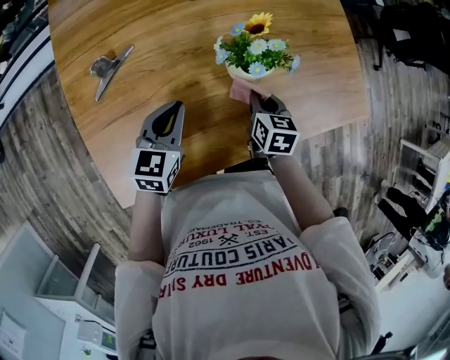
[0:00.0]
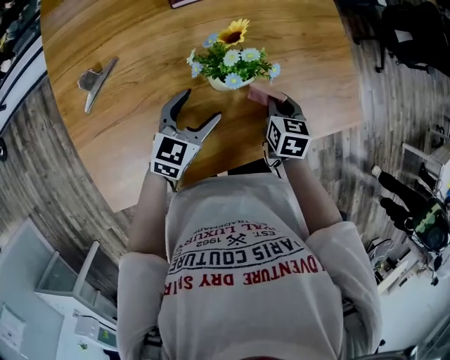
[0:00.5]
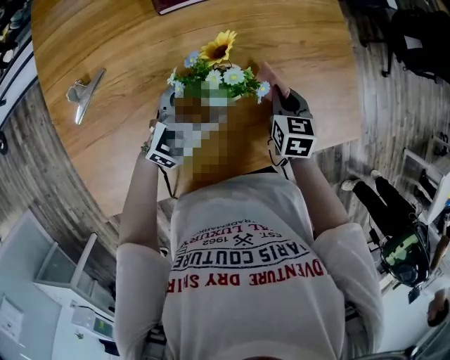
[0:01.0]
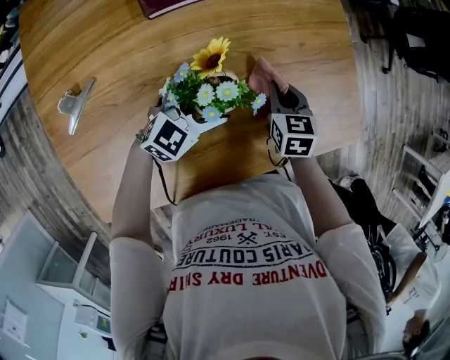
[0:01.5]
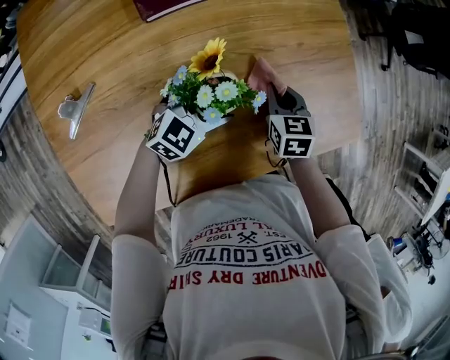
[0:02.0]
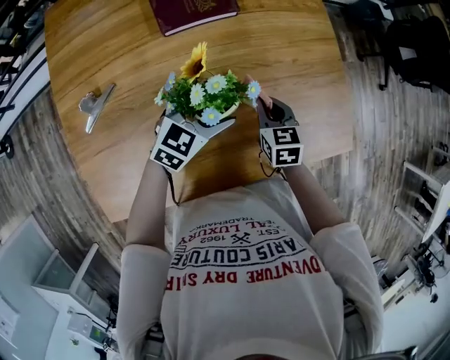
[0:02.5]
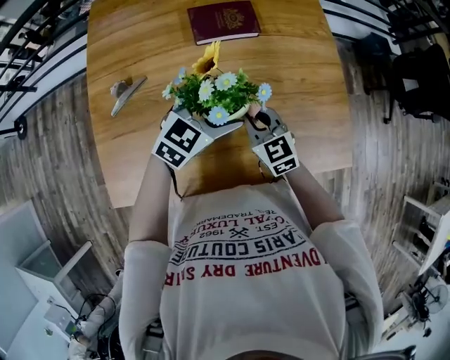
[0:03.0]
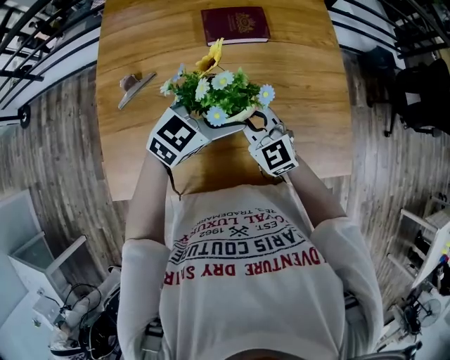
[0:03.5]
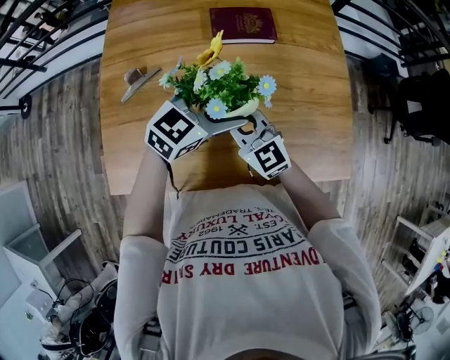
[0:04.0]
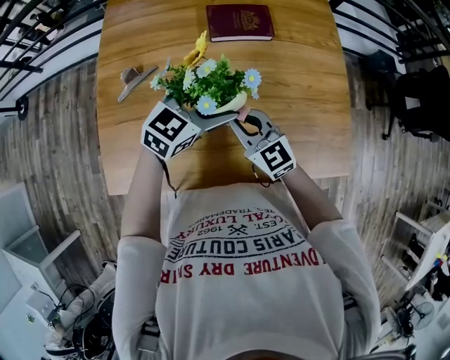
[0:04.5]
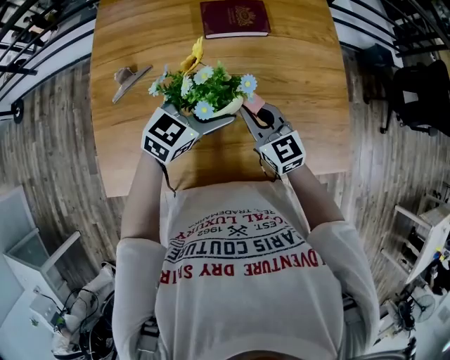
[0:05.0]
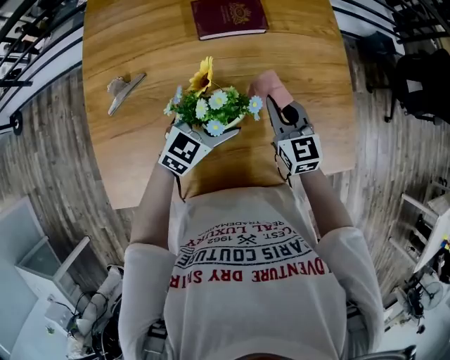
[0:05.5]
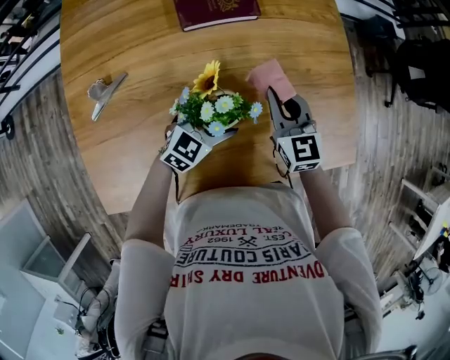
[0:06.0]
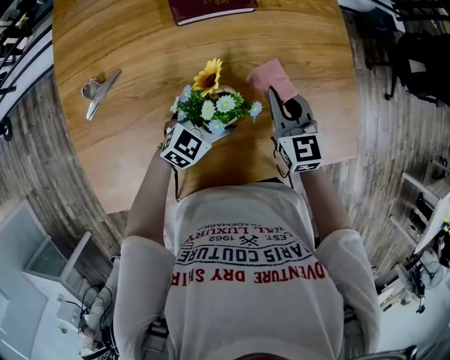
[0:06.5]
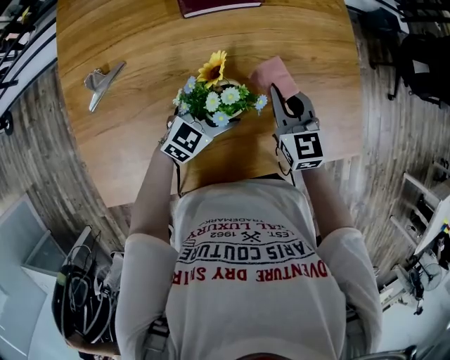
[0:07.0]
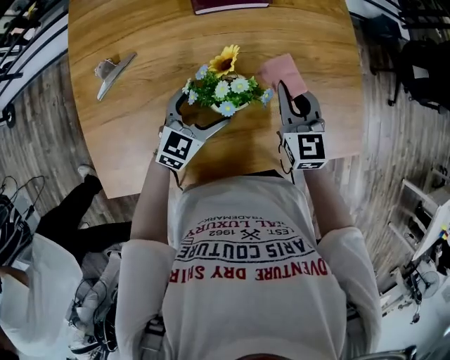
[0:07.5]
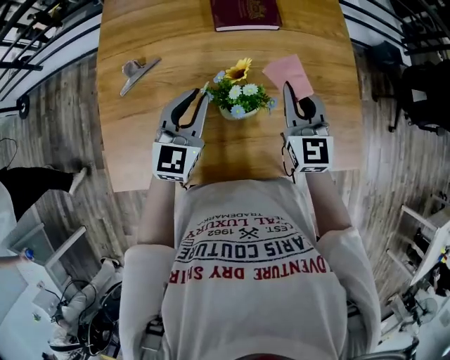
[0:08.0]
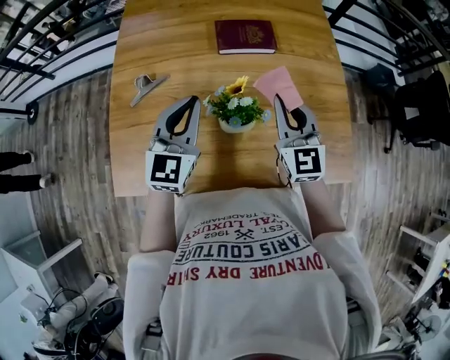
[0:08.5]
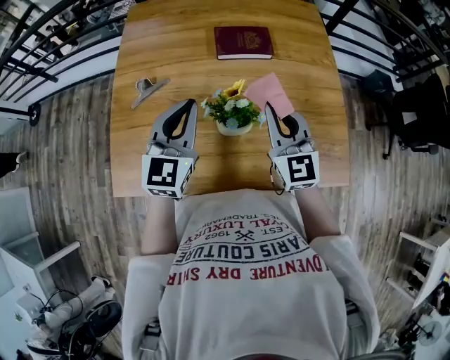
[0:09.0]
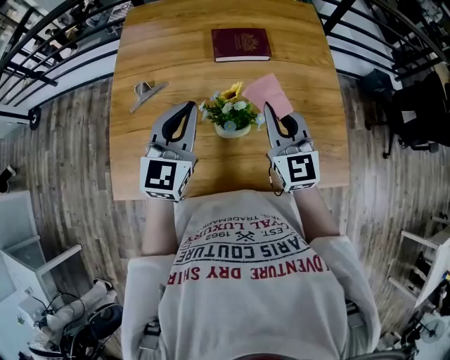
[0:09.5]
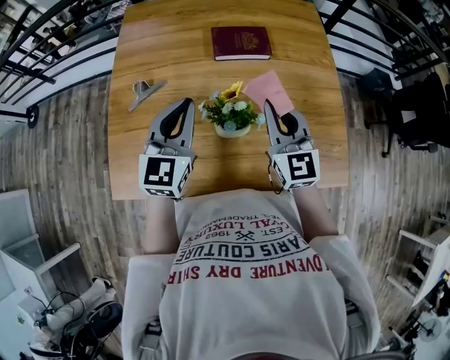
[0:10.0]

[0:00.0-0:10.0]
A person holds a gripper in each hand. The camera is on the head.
0:00.0 to 0:02.0: The grippers both shift forward and to the right by roughly 20 cm. The left gripper swivels about 40 degrees, and opens.
0:02.0 to 0:04.0: The left gripper travels upward by roughly 20 cm, and swivels roughly 20 degrees, while the right gripper ends up about 25 cm from where it was, and angles its fingers upward, by some 30 degrees.
0:04.0 to 0:06.0: The right gripper moves to the right, forward and downward, some 20 cm, and swivels approximately 30 degrees, while the left gripper travels downward by approximately 20 cm.
0:06.0 to 0:08.0: The right gripper travels upward by some 10 cm. Meanwhile the left gripper heads upward and to the left, covering approximately 20 cm, turns by about 40 degrees, and closes up.
0:08.0 to 0:10.0: The right gripper moves upward, about 5 cm. The left gripper is displaced upward by roughly 10 cm.

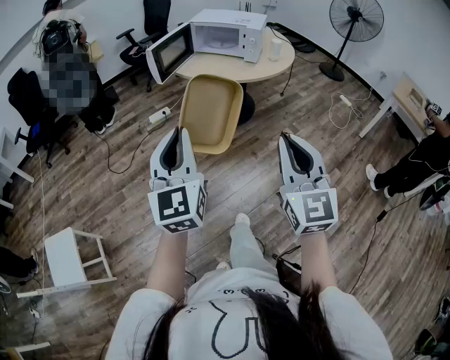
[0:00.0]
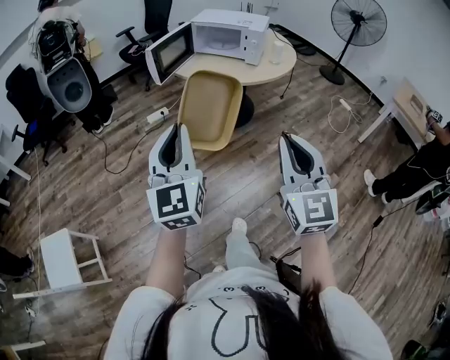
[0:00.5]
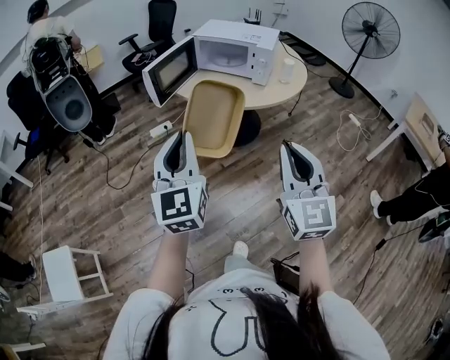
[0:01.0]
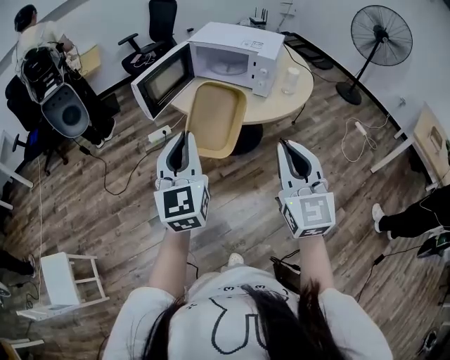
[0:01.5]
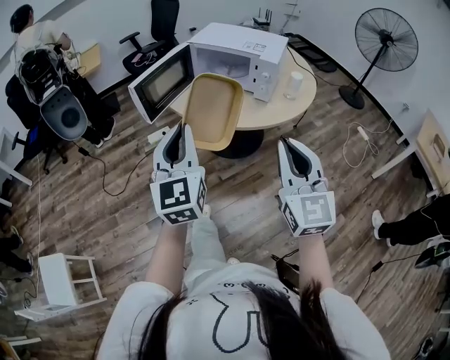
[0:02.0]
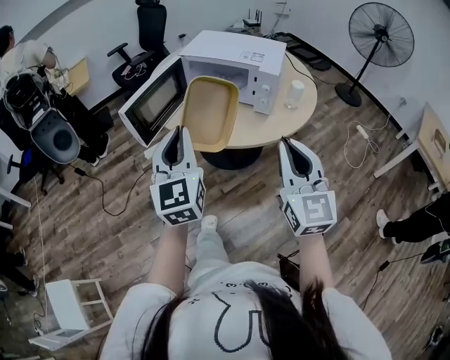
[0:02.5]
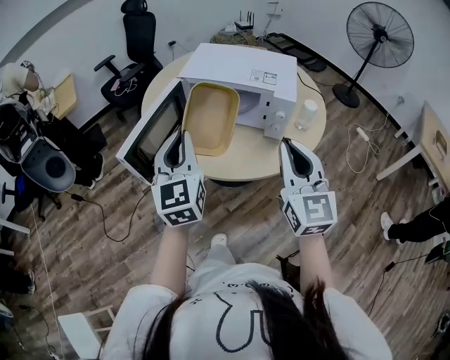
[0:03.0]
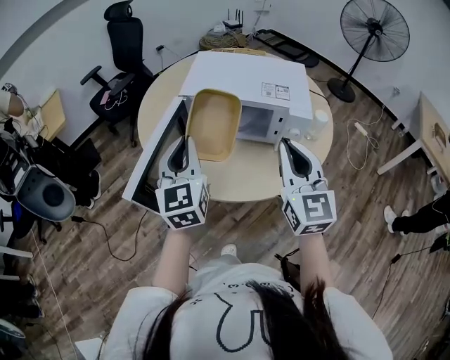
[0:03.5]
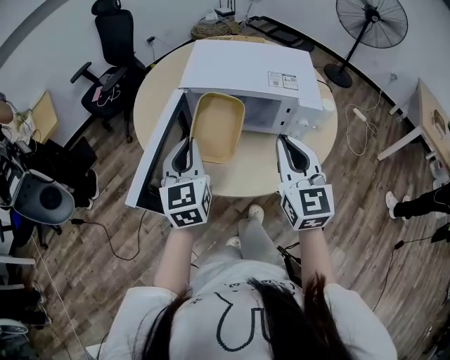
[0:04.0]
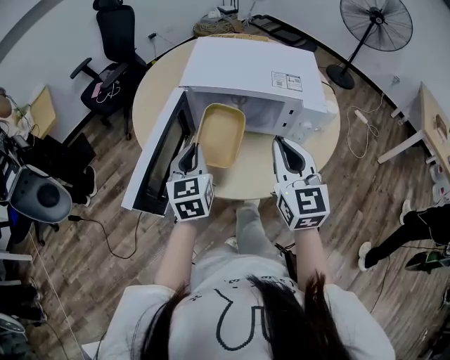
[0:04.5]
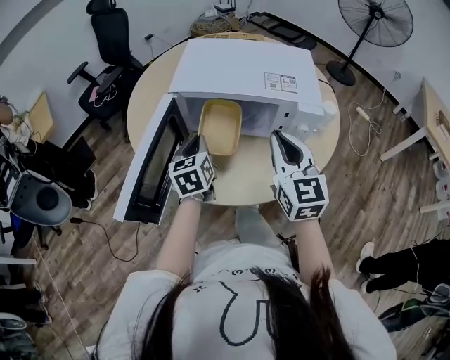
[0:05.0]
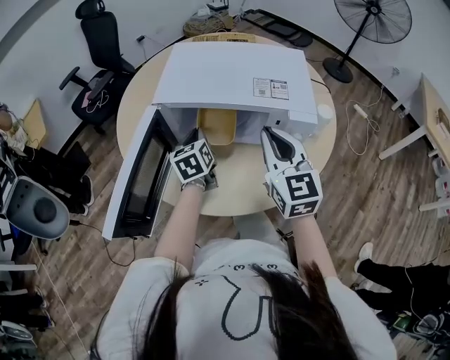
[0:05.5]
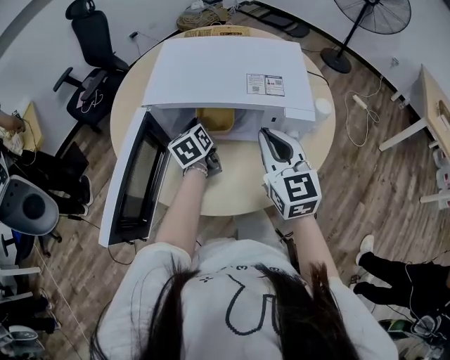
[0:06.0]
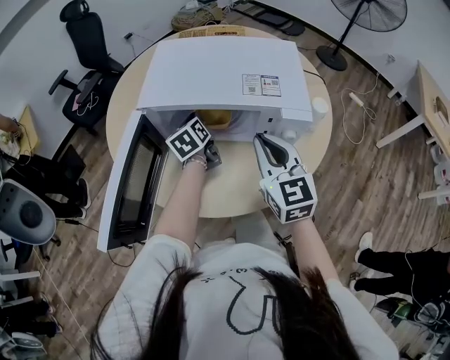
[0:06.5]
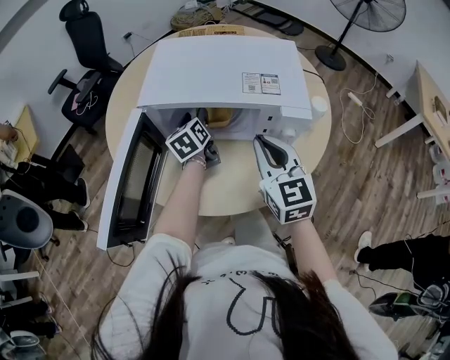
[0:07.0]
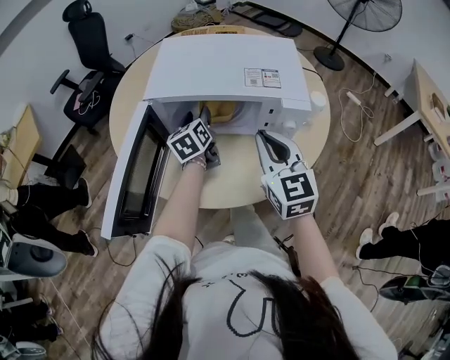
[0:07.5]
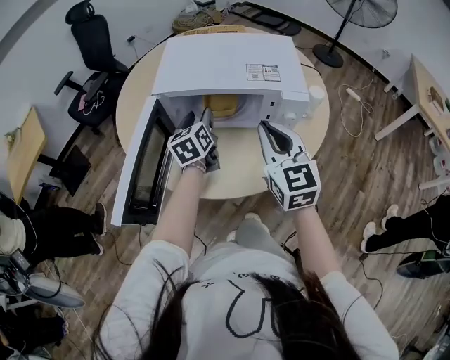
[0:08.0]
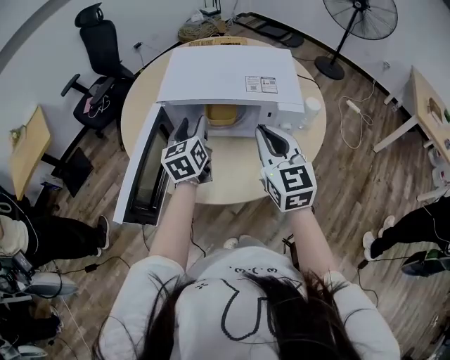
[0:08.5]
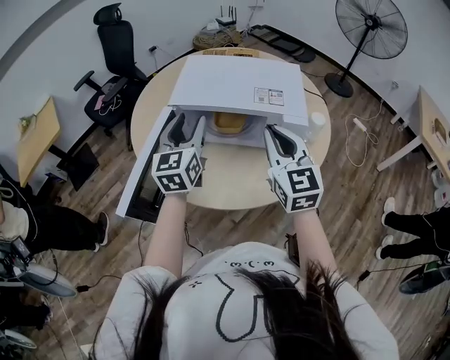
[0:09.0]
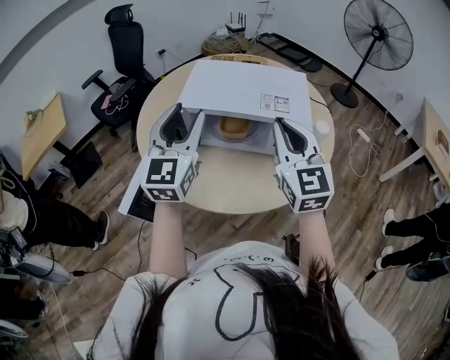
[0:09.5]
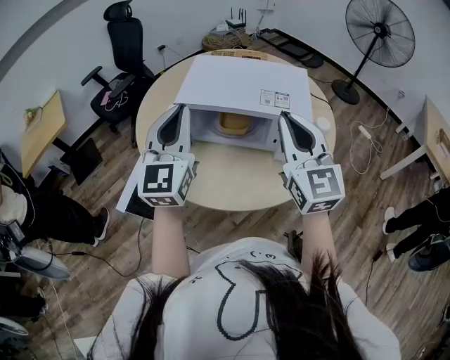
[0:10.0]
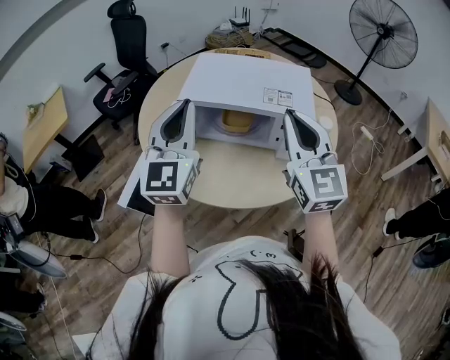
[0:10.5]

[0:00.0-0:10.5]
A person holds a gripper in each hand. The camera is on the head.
0:00.0 to 0:02.0: Both grippers travel together forward, about 35 cm.
0:02.0 to 0:04.0: The grippers both shift forward by roughly 40 cm. The left gripper rotates roughly 20 degrees.
0:04.0 to 0:06.5: The left gripper moves forward, downward and to the right, roughly 30 cm, and swivels approximately 30 degrees; the right gripper is displaced forward and downward by approximately 15 cm.
0:06.5 to 0:08.5: The right gripper shifts about 5 cm upward, while the left gripper heads upward and backward, covering approximately 15 cm, and opens up.
0:08.5 to 0:10.5: The left gripper shifts roughly 20 cm upward and backward, changes its angle by some 40 degrees, and closes. Meanwhile the right gripper shifts roughly 10 cm upward.

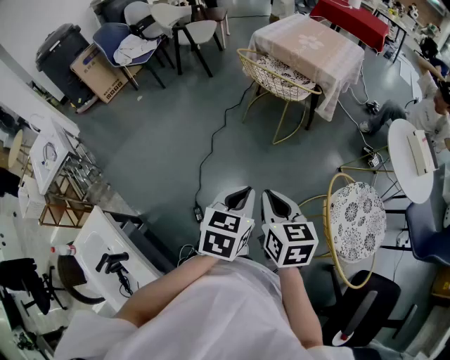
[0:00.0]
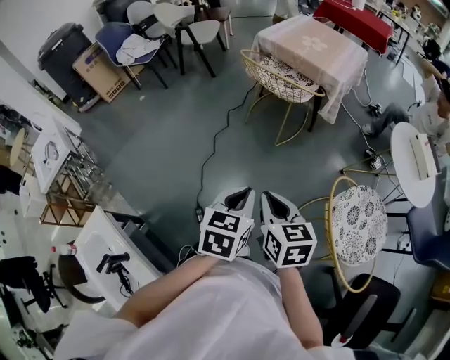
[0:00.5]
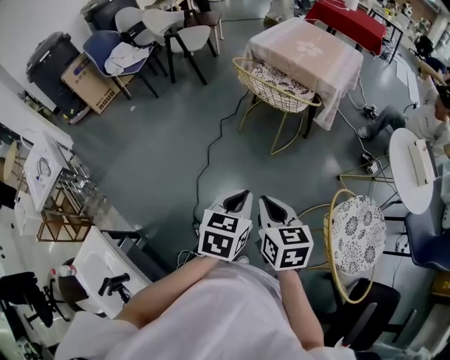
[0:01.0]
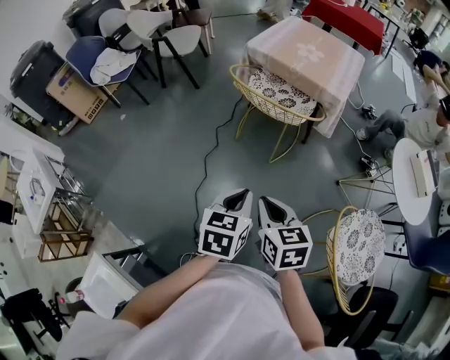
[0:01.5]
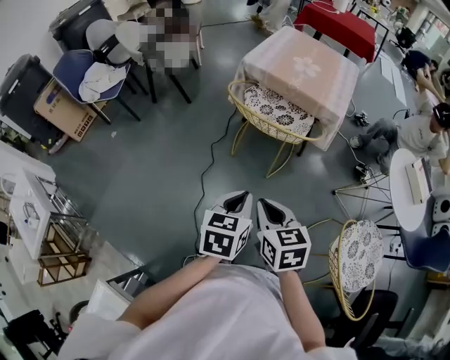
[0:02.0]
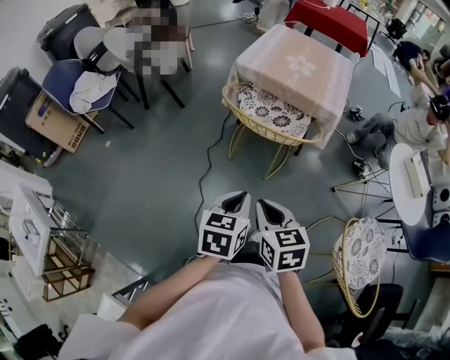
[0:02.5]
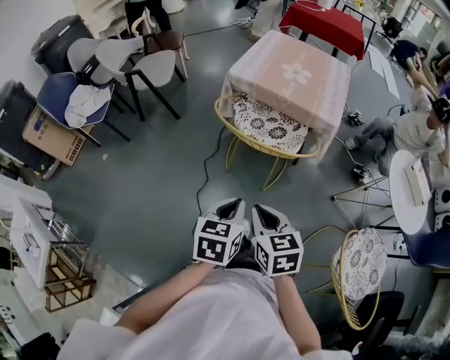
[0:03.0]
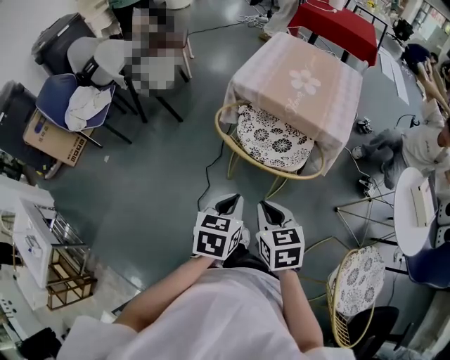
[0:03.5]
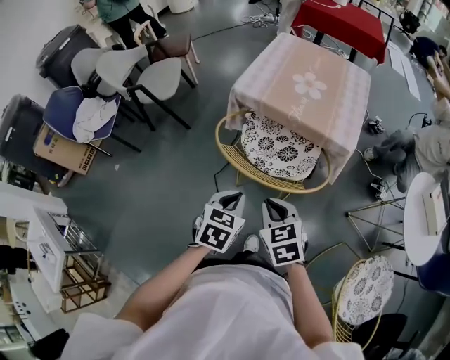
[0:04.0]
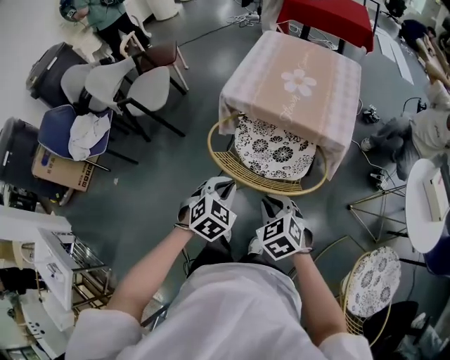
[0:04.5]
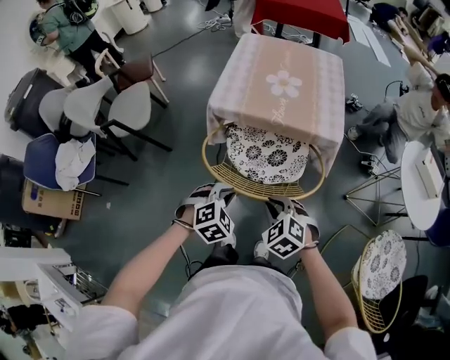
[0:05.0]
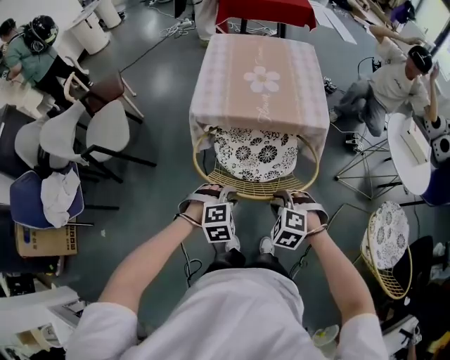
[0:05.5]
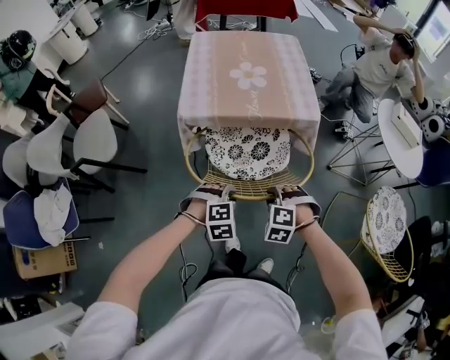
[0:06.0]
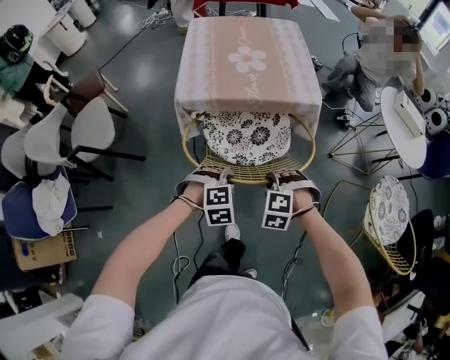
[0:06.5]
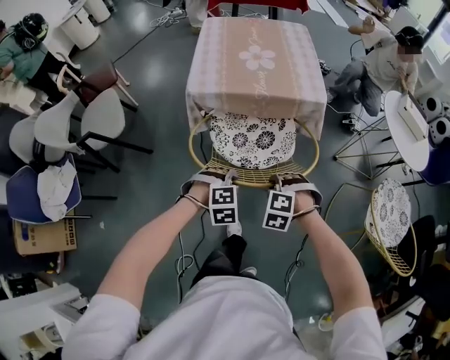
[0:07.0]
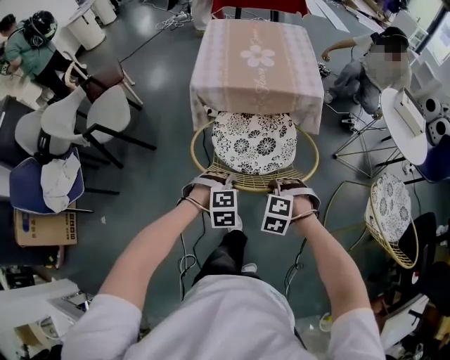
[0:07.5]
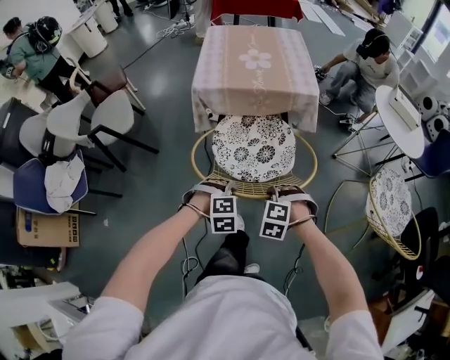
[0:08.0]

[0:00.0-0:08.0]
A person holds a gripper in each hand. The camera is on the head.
0:00.0 to 0:02.0: The two grippers go some 30 cm forward.
0:02.0 to 0:04.0: The two grippers go some 25 cm forward. The left gripper swivels some 20 degrees.
0:04.0 to 0:06.0: Both grippers move downward, roughly 10 cm. The right gripper swivels about 50 degrees. The left gripper rolls clockwise, seen from behind, by approximately 80 degrees, and opens up.
0:06.0 to 0:08.0: Both grippers move backward, some 15 cm.
